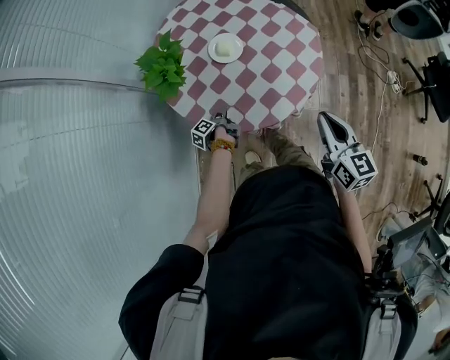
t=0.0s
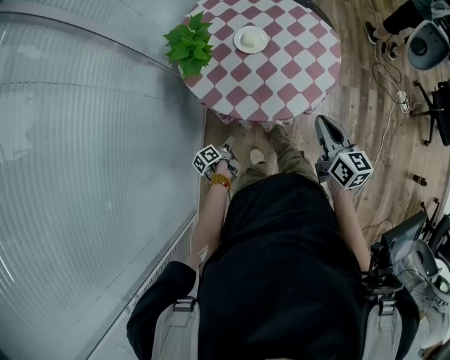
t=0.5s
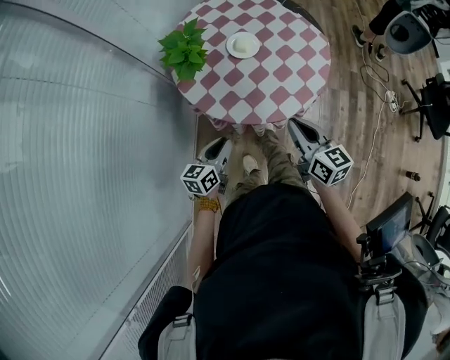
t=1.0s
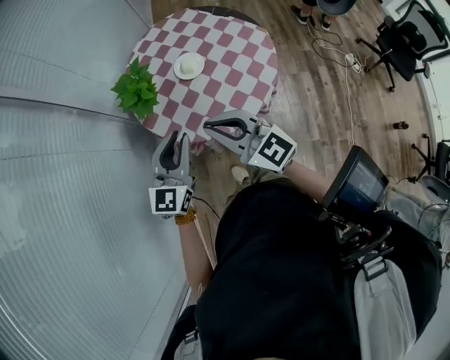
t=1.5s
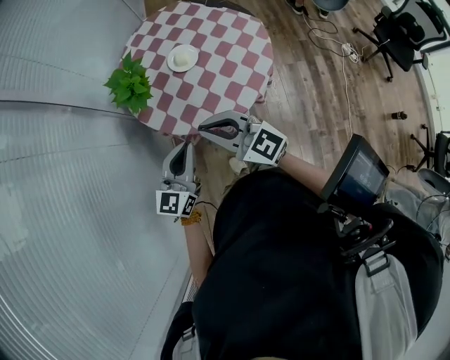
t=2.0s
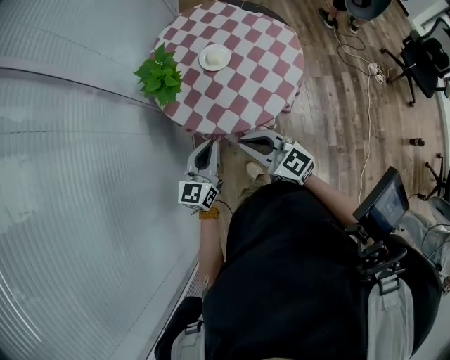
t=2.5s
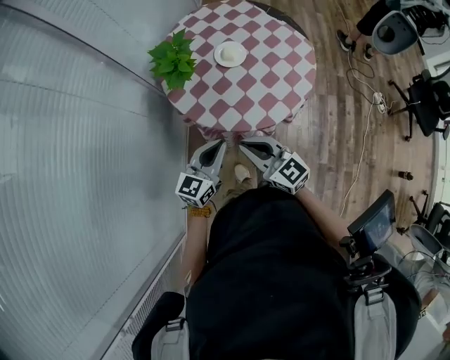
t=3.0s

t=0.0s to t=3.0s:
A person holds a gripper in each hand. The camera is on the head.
t=0.0s to t=1.5s: The right gripper ends up roughly 25 cm from where it was, and turns by some 40 degrees.
t=1.5s to t=3.0s: The right gripper moves downward, about 10 cm.

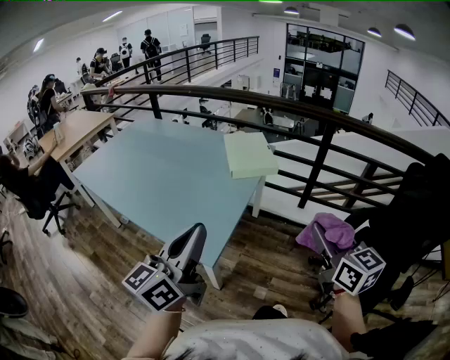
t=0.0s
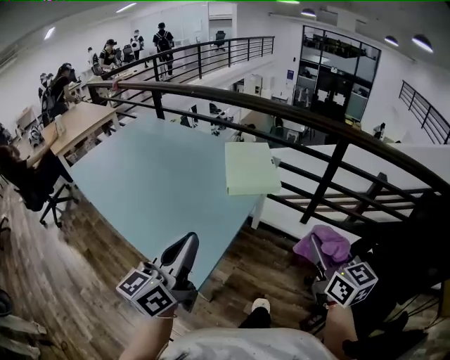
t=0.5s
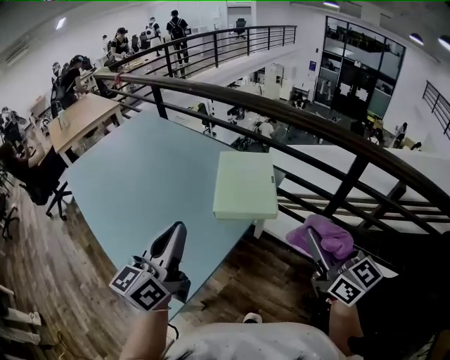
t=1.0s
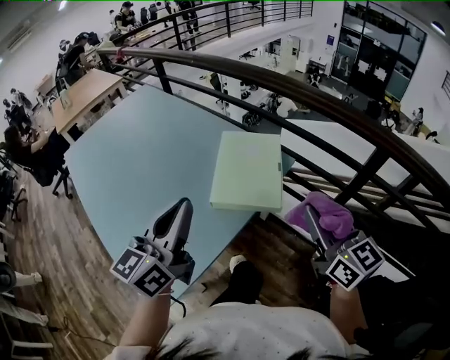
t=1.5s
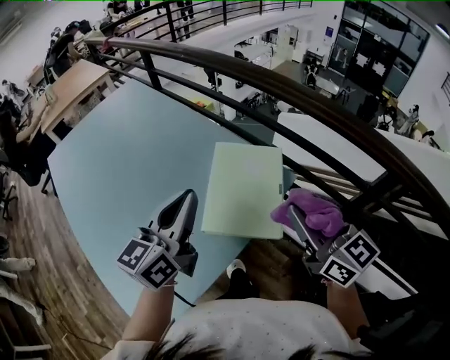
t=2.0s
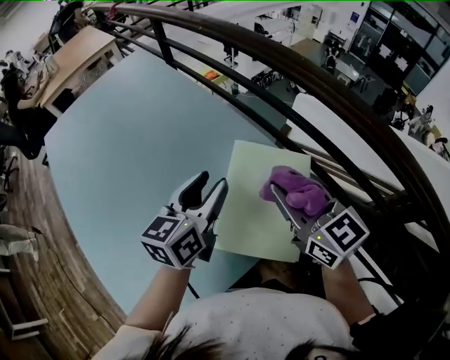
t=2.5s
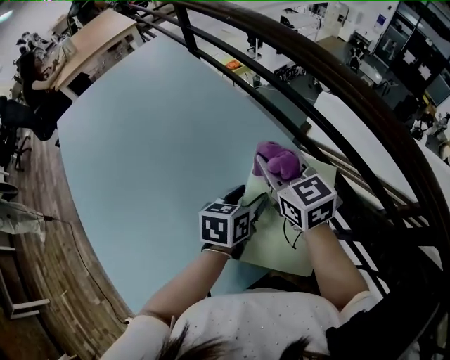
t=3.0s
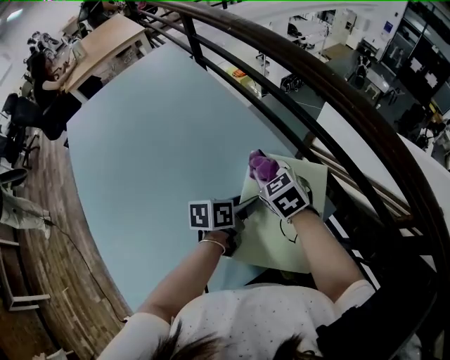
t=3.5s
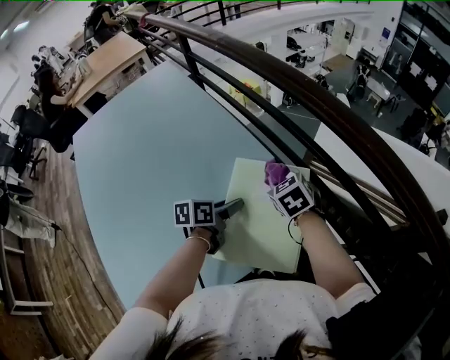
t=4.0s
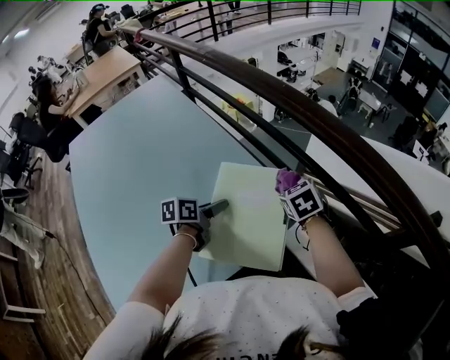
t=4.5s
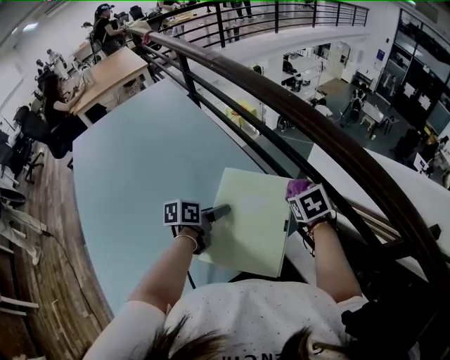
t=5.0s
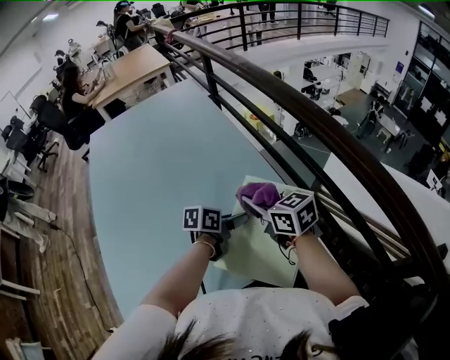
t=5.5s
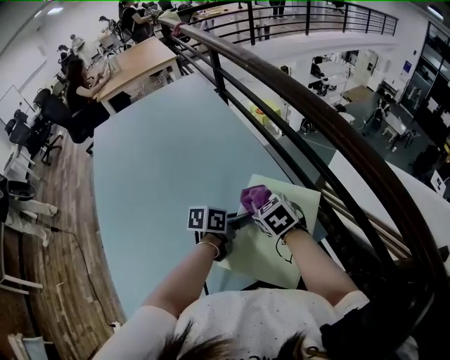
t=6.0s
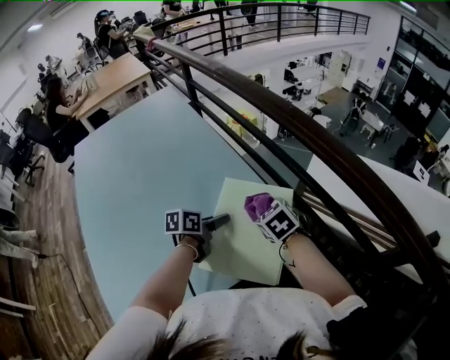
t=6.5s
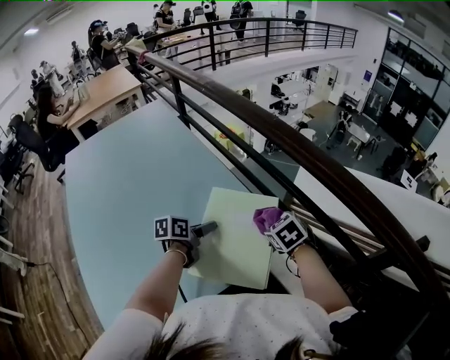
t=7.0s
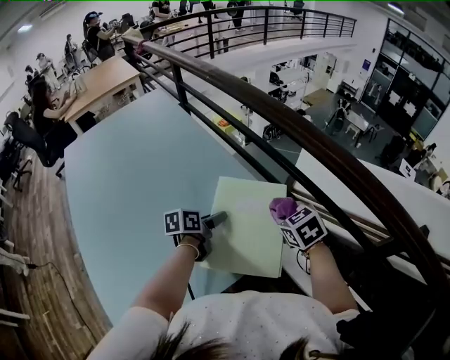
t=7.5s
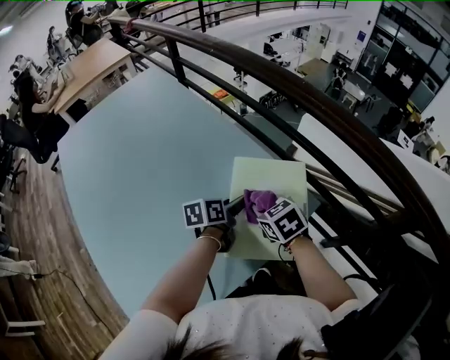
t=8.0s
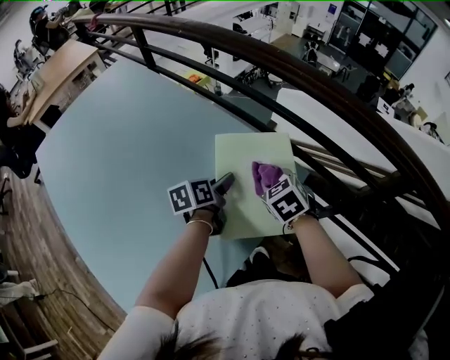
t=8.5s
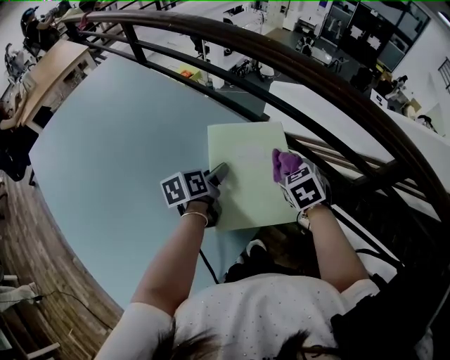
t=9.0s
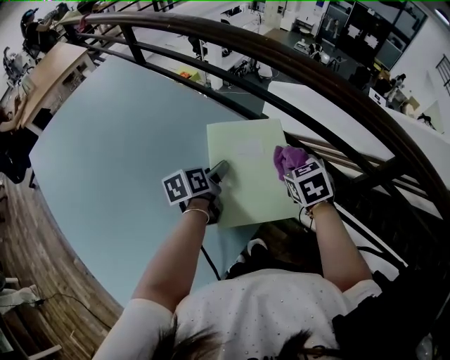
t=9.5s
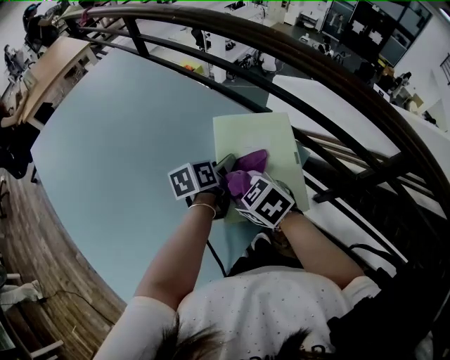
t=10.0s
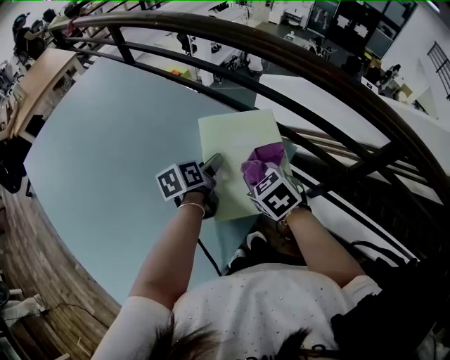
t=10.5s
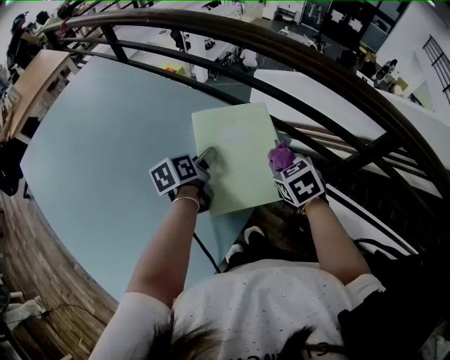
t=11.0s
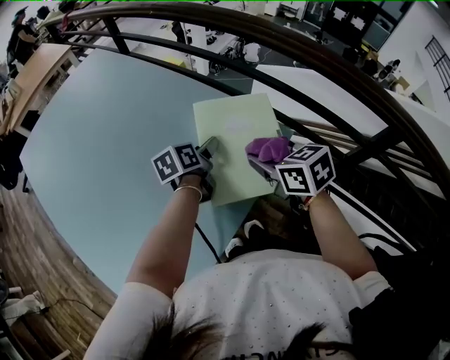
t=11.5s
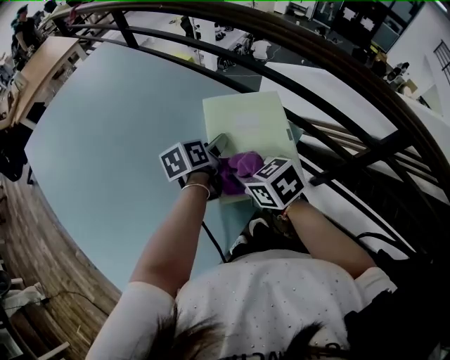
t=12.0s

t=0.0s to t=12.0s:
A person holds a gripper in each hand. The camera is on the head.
t=0.0s to t=2.0s: Both grippers are carried forward, approximately 60 cm. The left gripper rotates approximately 20 degrees. The right gripper swivels roughly 30 degrees.
t=2.0s to t=4.0s: The left gripper travels downward and forward by some 30 cm, angles its fingers downward, by some 40 degrees, and opens its fingers, while the right gripper heads forward and downward, covering roughly 35 cm, and points its fingers roughly 40 degrees further downward.
t=4.0s to t=6.0s: The right gripper goes approximately 10 cm to the left.
t=6.0s to t=8.0s: The right gripper goes to the right and returns, approximately 15 cm each way.
t=8.0s to t=10.0s: The right gripper moves backward, approximately 10 cm, and goes to the right and returns, approximately 15 cm each way.
t=10.0s to t=12.0s: The right gripper travels to the right and back again, approximately 20 cm each way.

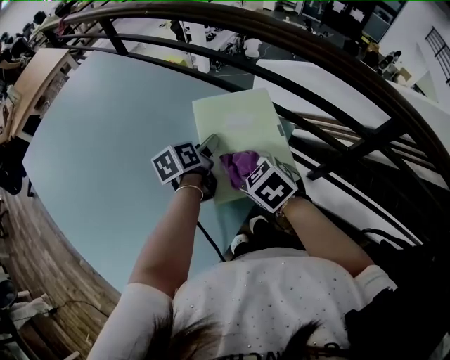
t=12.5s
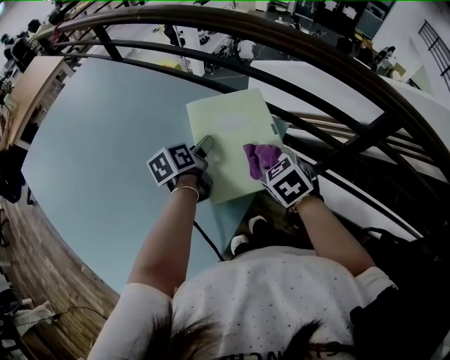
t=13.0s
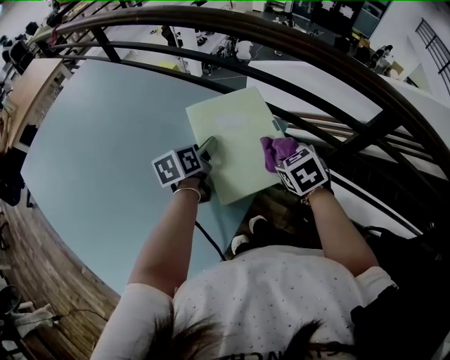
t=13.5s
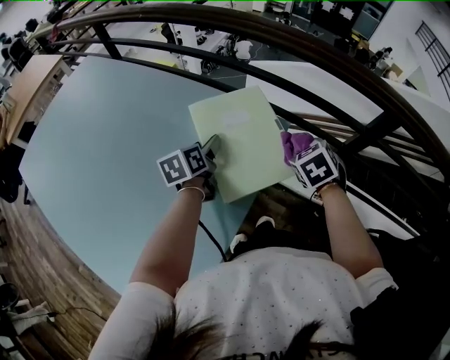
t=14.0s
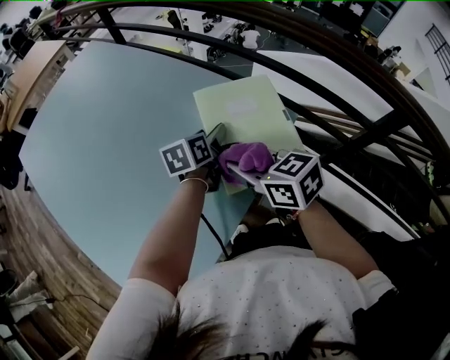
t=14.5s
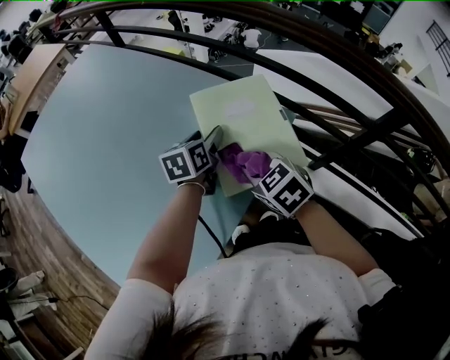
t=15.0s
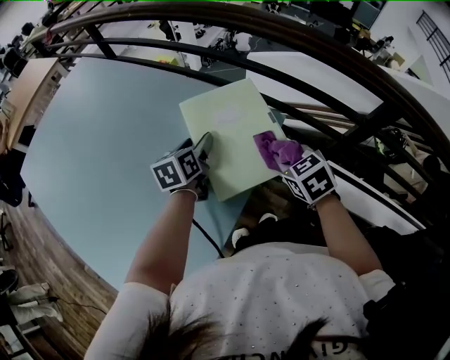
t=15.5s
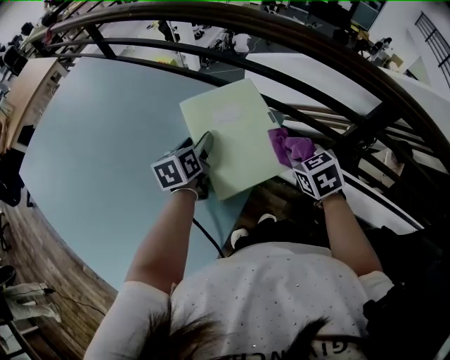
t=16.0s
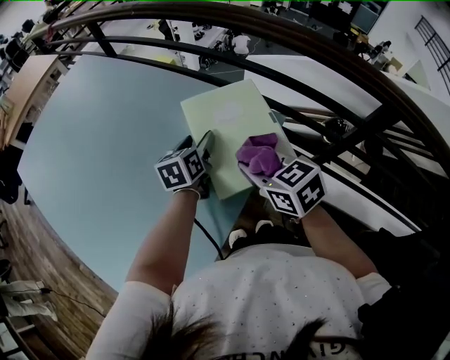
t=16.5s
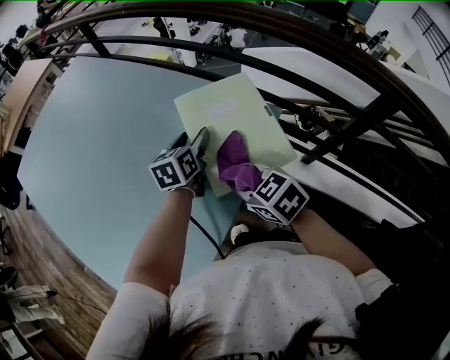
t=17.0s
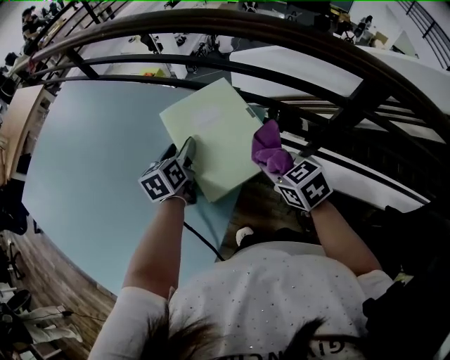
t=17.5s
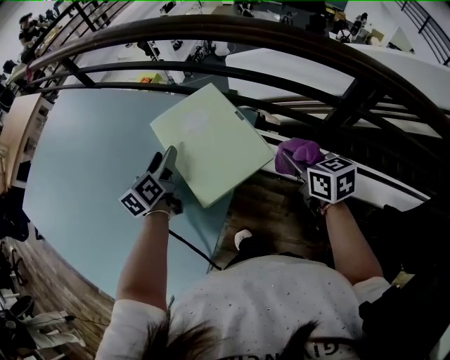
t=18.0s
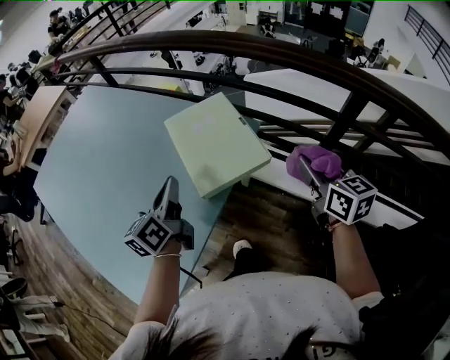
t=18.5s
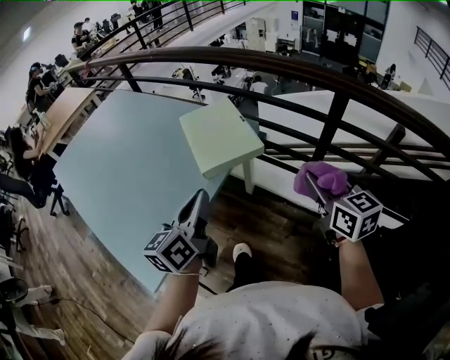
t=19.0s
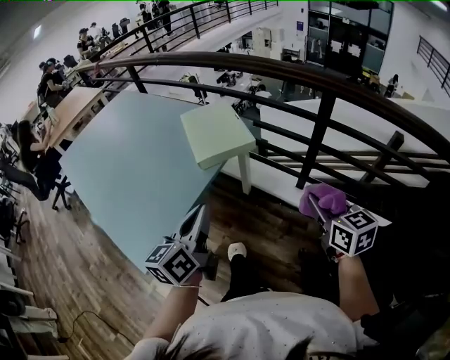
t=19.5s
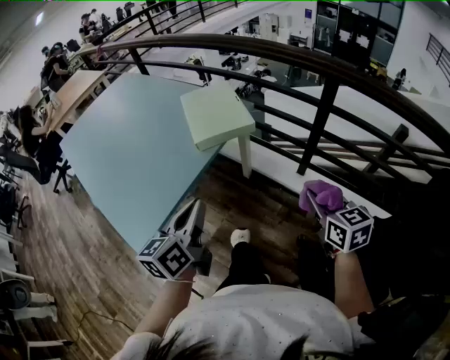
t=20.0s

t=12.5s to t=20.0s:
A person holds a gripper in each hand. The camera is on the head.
t=12.5s to t=14.5s: The right gripper moves upward, some 5 cm, and changes its angle by some 30 degrees.
t=14.5s to t=16.5s: The right gripper goes to the right and returns, roughly 20 cm each way.
t=16.5s to t=18.0s: The right gripper travels to the right by approximately 20 cm, and rotates some 30 degrees.
t=18.0s to t=20.0s: The grippers both shift backward by approximately 40 cm. The left gripper closes its fingers.

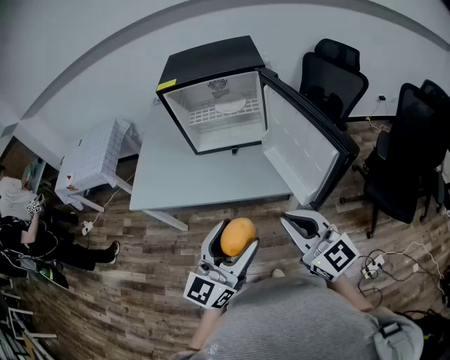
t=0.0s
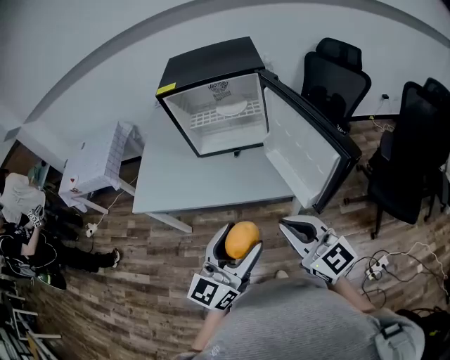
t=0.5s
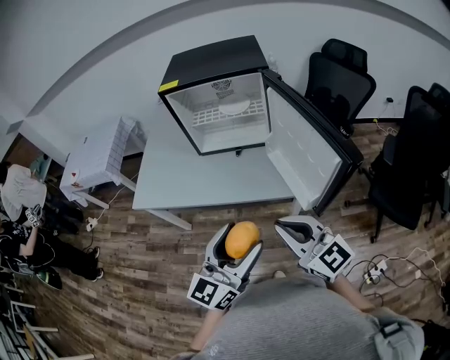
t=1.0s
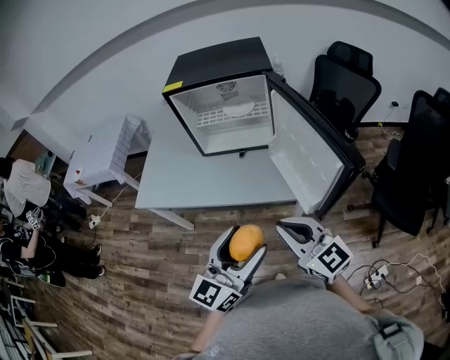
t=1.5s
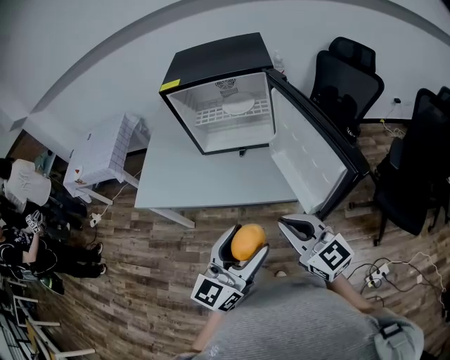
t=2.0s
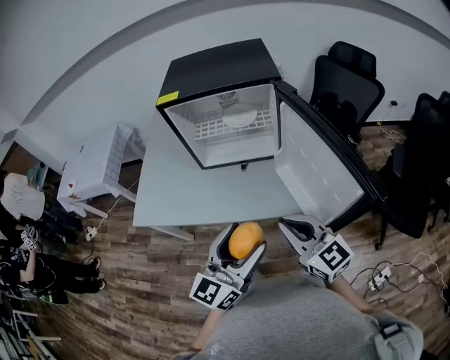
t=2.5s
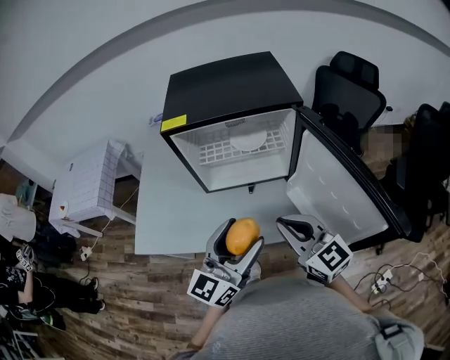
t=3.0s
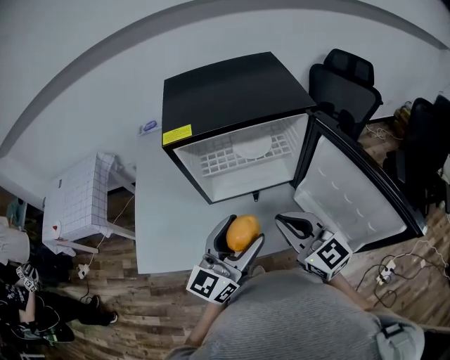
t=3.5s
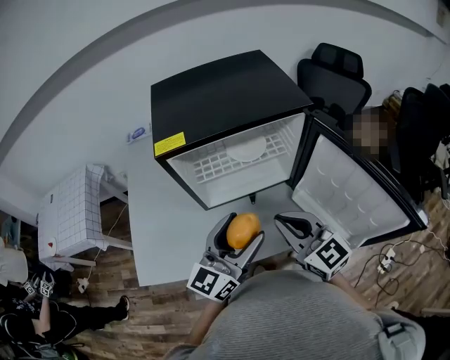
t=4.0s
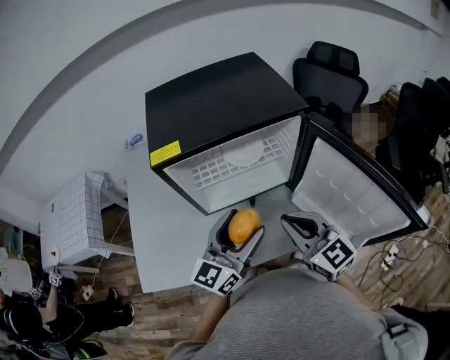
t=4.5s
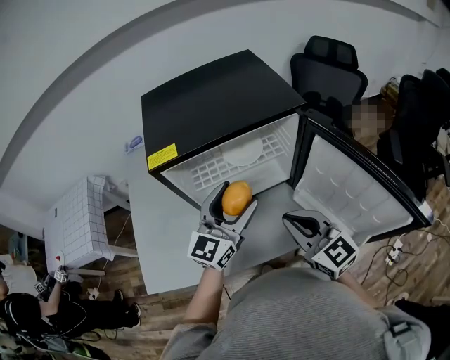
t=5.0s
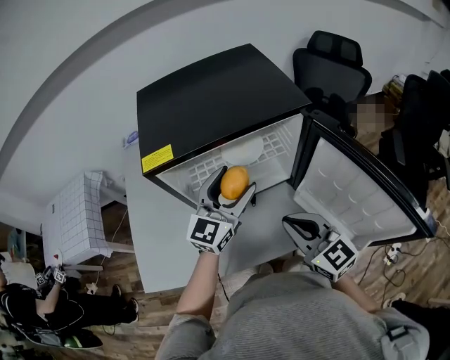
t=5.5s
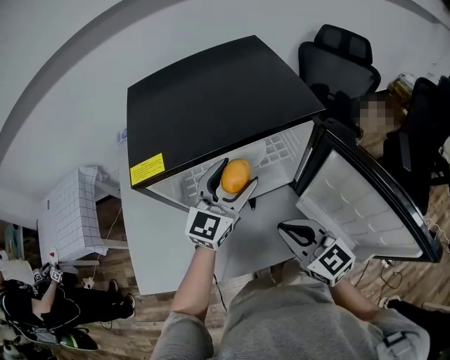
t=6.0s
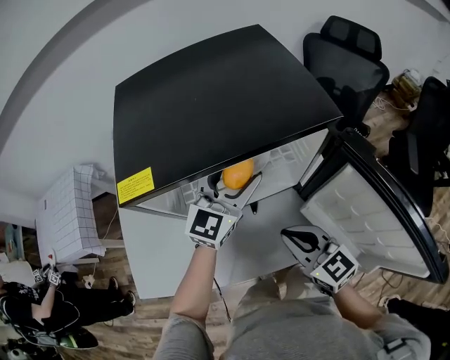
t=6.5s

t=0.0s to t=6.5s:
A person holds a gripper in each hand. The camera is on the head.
t=0.0s to t=2.0s: The right gripper ends up roughly 5 cm from where it was.
t=2.0s to t=4.5s: Both grippers move forward and to the left, approximately 30 cm. The right gripper swivels some 20 degrees.
t=4.5s to t=6.5s: The left gripper goes approximately 20 cm forward, and turns by roughly 20 degrees. Meanwhile the right gripper goes some 10 cm downward and forward.
